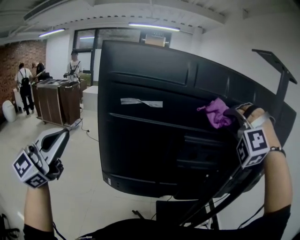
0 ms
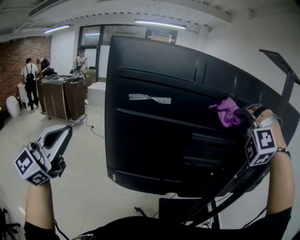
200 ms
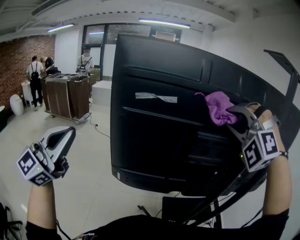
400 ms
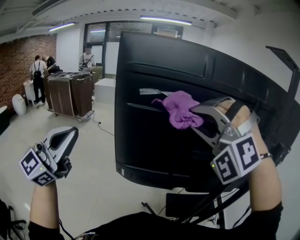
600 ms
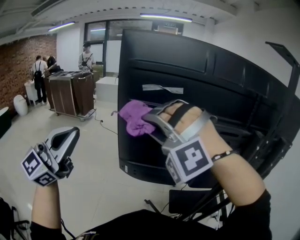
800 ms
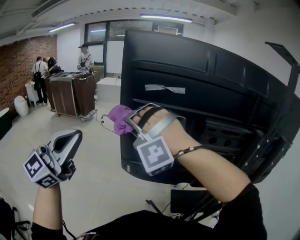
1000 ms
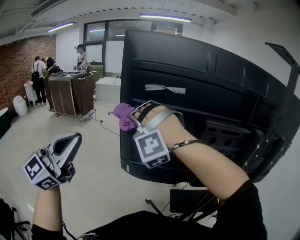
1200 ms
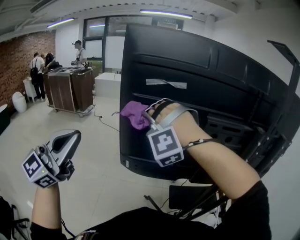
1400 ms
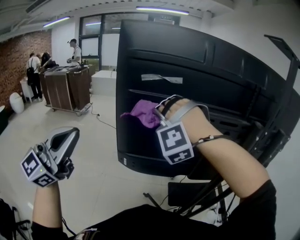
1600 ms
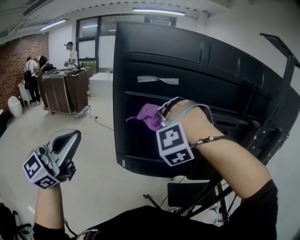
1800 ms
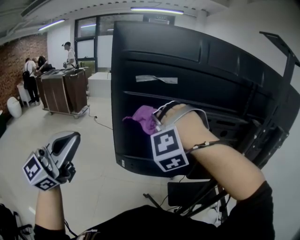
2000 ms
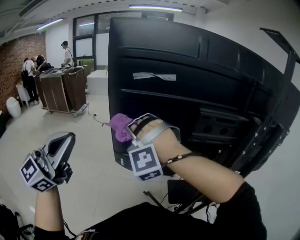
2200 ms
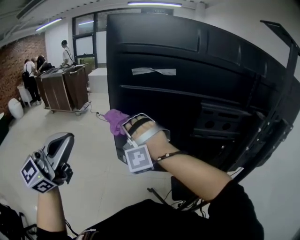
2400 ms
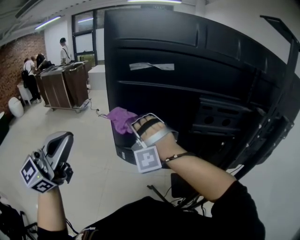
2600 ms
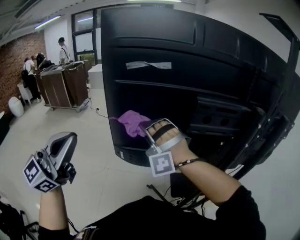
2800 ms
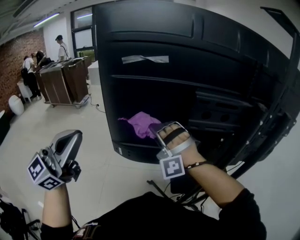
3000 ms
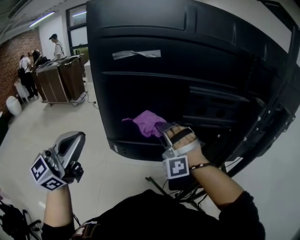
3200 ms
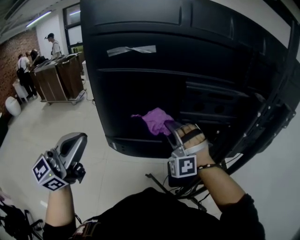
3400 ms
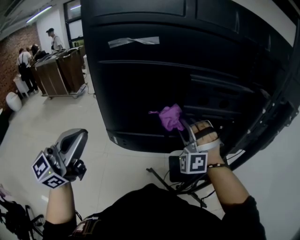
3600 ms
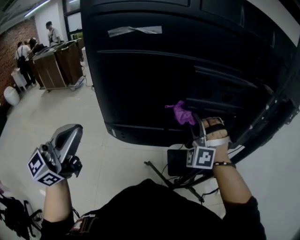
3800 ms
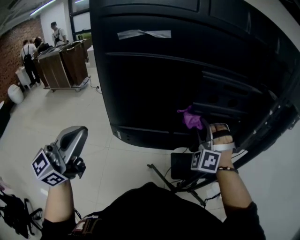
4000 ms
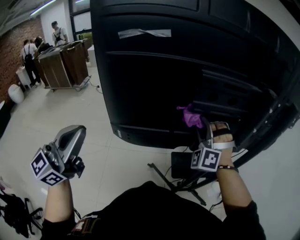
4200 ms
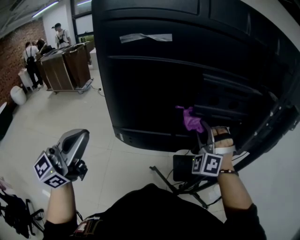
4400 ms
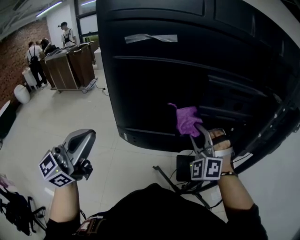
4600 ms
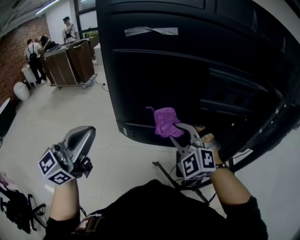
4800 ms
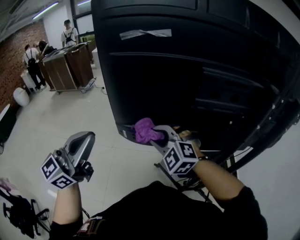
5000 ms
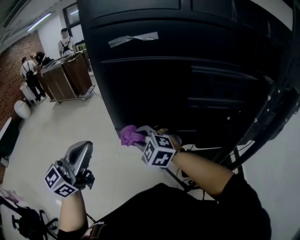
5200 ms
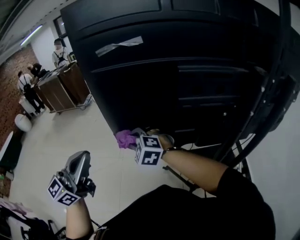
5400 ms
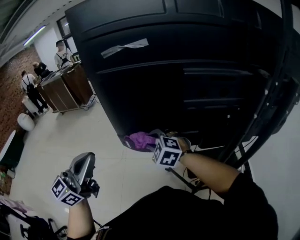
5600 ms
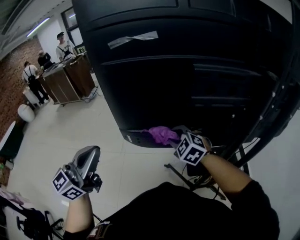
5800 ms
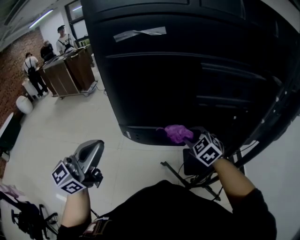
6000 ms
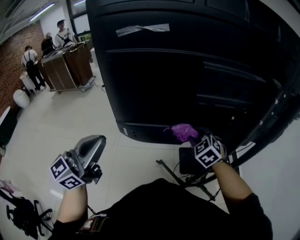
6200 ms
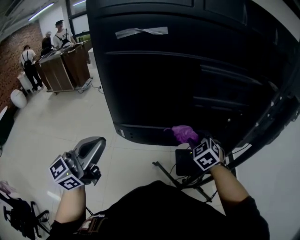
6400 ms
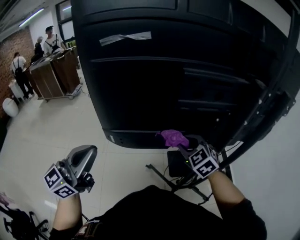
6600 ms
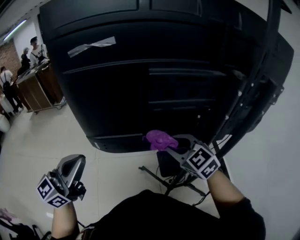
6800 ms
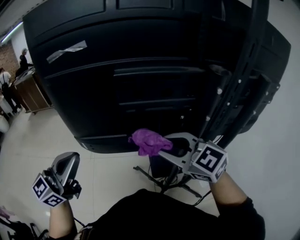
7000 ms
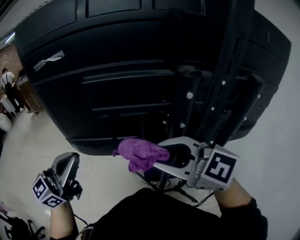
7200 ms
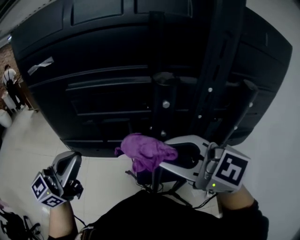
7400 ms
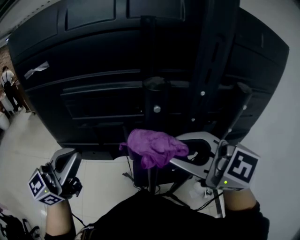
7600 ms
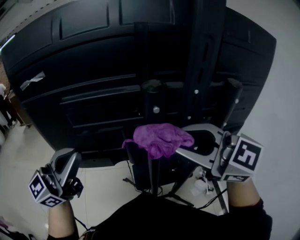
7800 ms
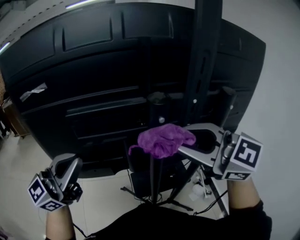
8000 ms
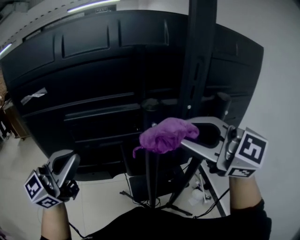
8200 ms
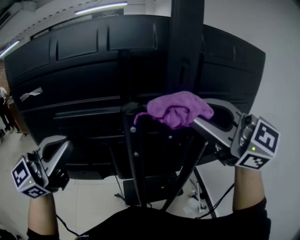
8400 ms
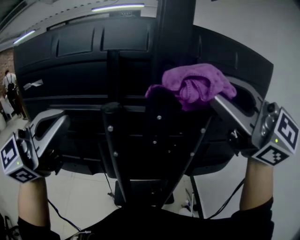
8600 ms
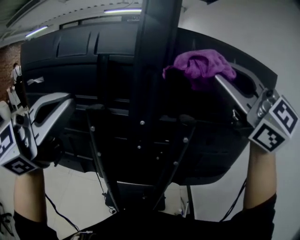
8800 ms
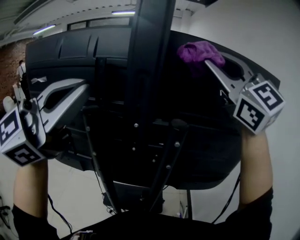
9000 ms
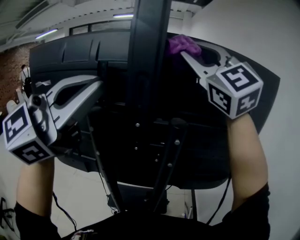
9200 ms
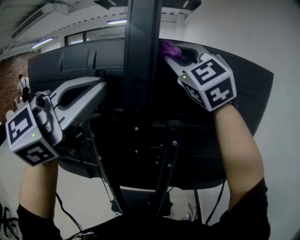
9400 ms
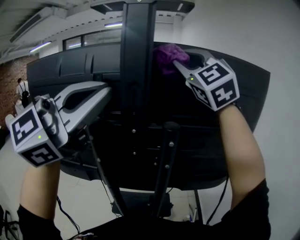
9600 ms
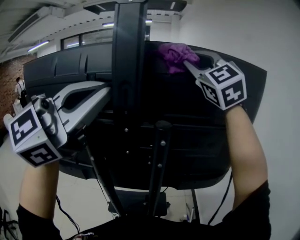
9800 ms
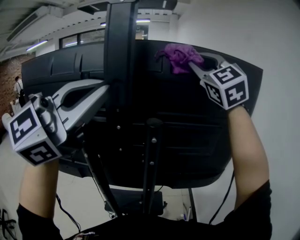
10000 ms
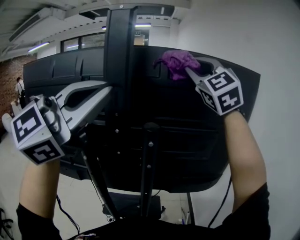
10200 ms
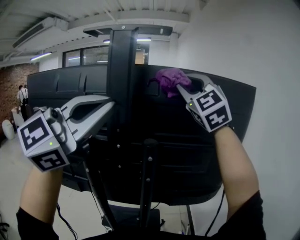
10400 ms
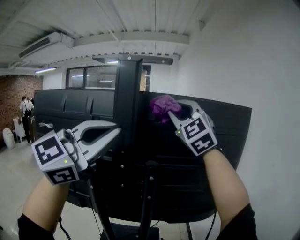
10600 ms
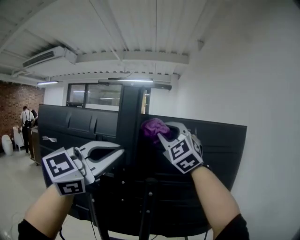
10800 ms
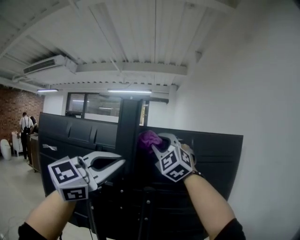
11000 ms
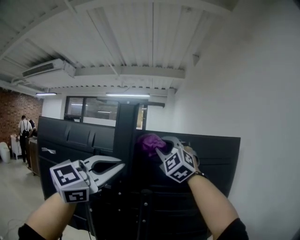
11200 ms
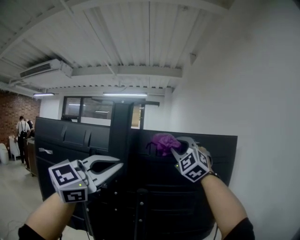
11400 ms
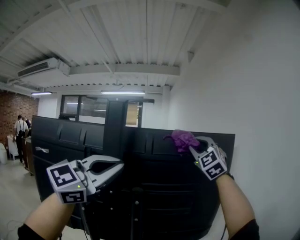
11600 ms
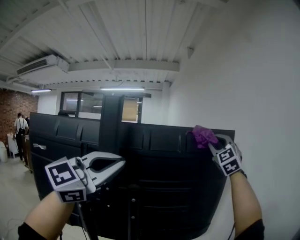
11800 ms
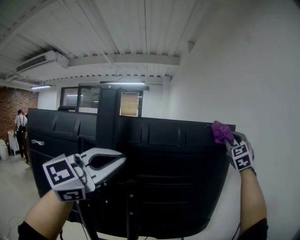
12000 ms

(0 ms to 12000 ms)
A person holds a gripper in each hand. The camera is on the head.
0 ms - 1600 ms: The right gripper is displaced to the left and downward by some 30 cm. Meanwhile the left gripper ends up approximately 5 cm from where it was.
1600 ms - 3000 ms: The left gripper changes place by about 5 cm. The right gripper heads downward, covering roughly 10 cm, goes to the left and returns, about 10 cm each way, and rotates approximately 30 degrees.
3000 ms - 4400 ms: The right gripper goes about 15 cm to the right, and rotates some 30 degrees, while the left gripper shifts by roughly 5 cm.
4400 ms - 6000 ms: The right gripper is displaced downward by about 10 cm, travels to the left and back again, about 25 cm each way, and turns by roughly 60 degrees.
6000 ms - 7600 ms: The right gripper moves approximately 35 cm, and swivels approximately 40 degrees. Meanwhile the left gripper changes place by about 30 cm.
7600 ms - 9000 ms: The right gripper goes roughly 40 cm upward, to the right and forward, and swivels approximately 40 degrees. The left gripper shifts some 30 cm upward and to the right, and swivels roughly 30 degrees.
9000 ms - 10400 ms: The left gripper is displaced to the right by some 10 cm. The right gripper travels forward by some 5 cm, reaches about 10 cm to the left, then returns, and swivels some 20 degrees.
10400 ms - 12000 ms: The left gripper travels to the right by roughly 5 cm, while the right gripper moves to the right and forward, about 35 cm, and rotates about 30 degrees.

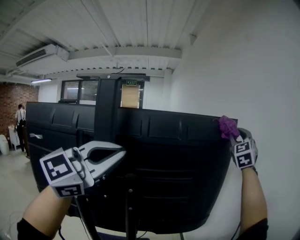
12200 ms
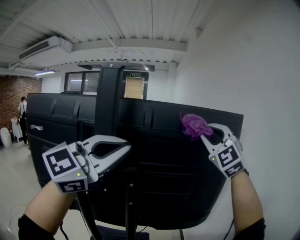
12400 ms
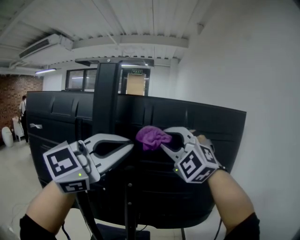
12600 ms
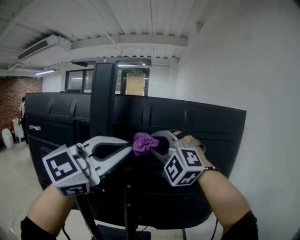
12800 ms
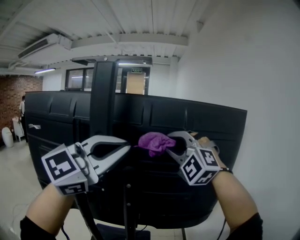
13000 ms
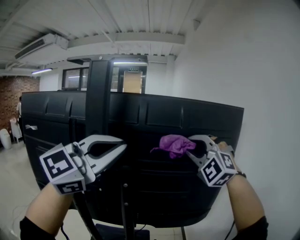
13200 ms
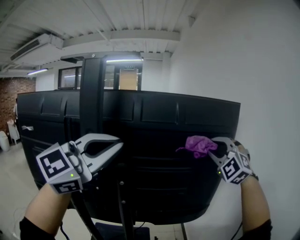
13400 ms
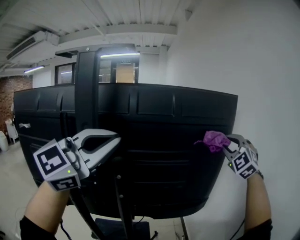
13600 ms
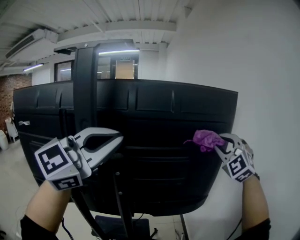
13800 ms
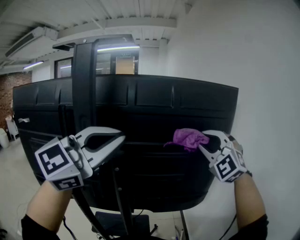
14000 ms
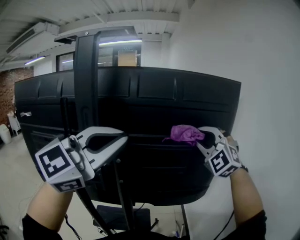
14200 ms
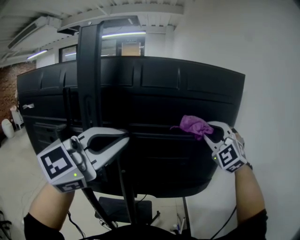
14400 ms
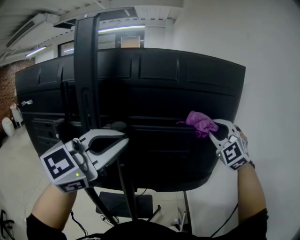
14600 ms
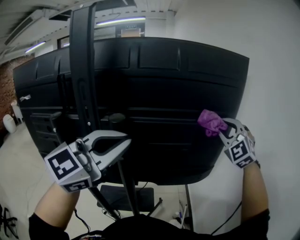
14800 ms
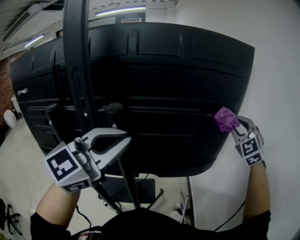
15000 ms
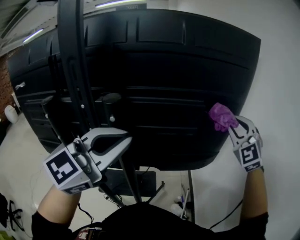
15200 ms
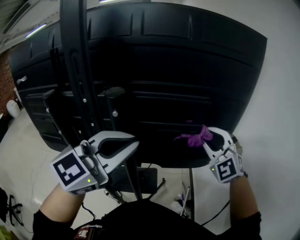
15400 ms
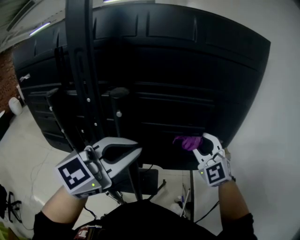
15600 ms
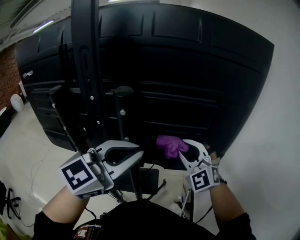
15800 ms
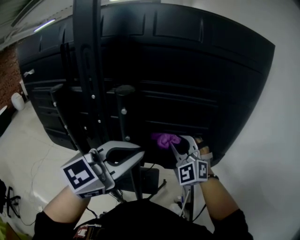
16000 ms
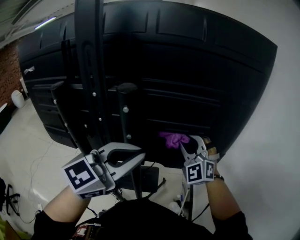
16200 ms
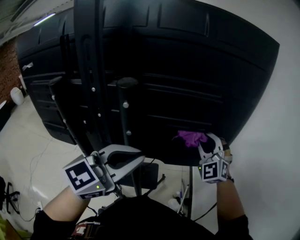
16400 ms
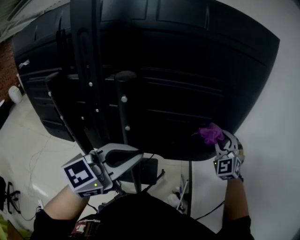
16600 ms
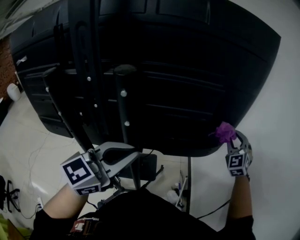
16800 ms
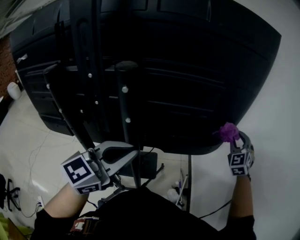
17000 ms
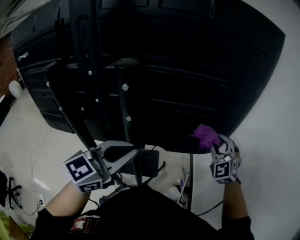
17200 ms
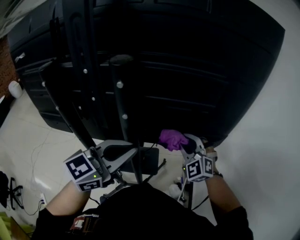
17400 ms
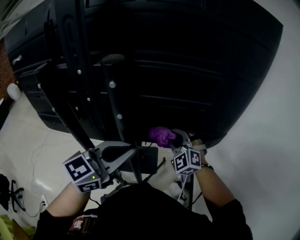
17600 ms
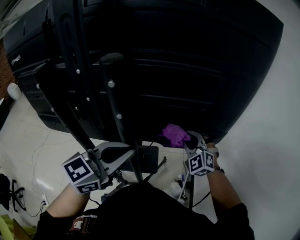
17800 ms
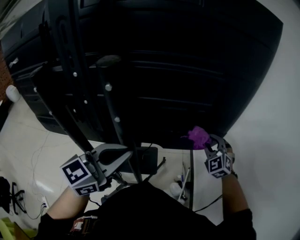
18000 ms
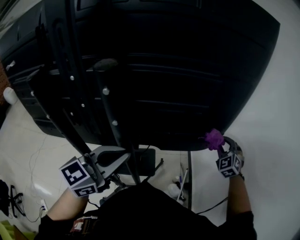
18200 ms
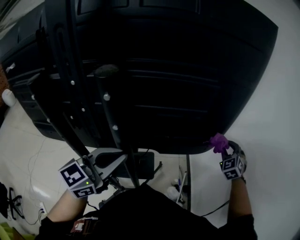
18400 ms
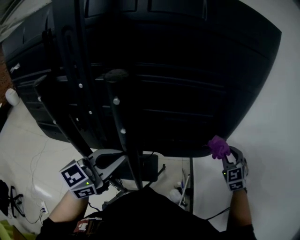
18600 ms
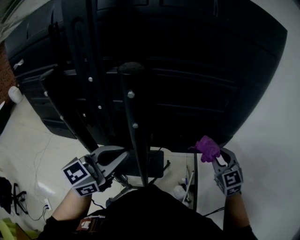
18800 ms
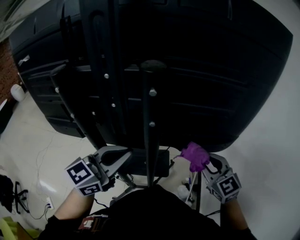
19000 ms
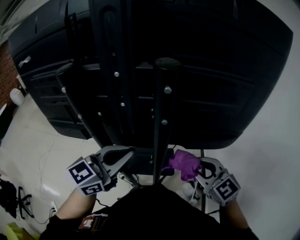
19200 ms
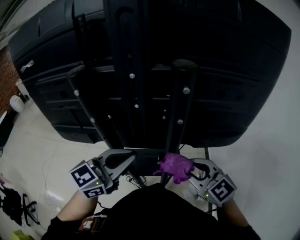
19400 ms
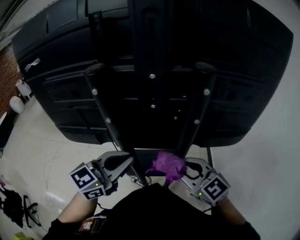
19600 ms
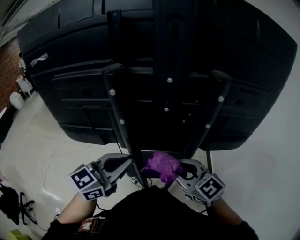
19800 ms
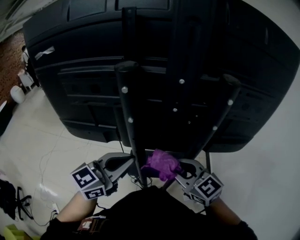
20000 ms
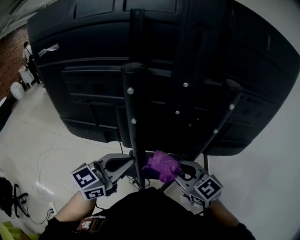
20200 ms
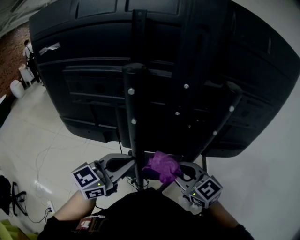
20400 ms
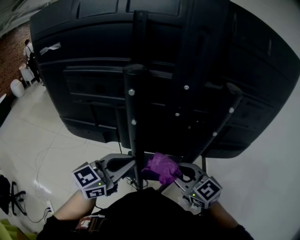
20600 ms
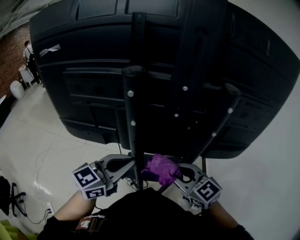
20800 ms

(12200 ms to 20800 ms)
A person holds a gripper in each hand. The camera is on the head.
12200 ms - 13600 ms: The left gripper moves about 5 cm; the right gripper heads downward, covering about 15 cm, moves roughly 35 cm to the left and comes back, and swivels roughly 30 degrees.
13600 ms - 15000 ms: The grippers both shift downward by roughly 10 cm. The right gripper reaches about 10 cm to the left, then returns.
15000 ms - 16600 ms: Both grippers travel together downward, roughly 15 cm. The right gripper travels to the left and back again, approximately 25 cm each way.
16600 ms - 18000 ms: The right gripper goes left and right, approximately 25 cm each way, reversing 2 times. The left gripper is displaced downward by roughly 5 cm.
18000 ms - 19400 ms: The left gripper ends up roughly 10 cm from where it was; the right gripper shifts by some 30 cm, and changes its angle by approximately 40 degrees.
19400 ms - 20800 ms: The grippers both shift to the left by roughly 10 cm.

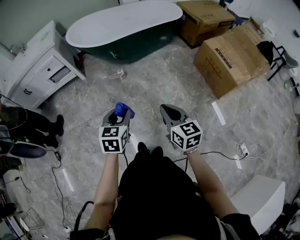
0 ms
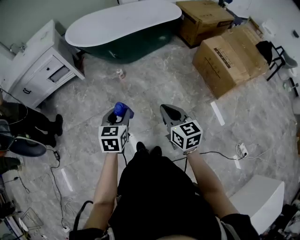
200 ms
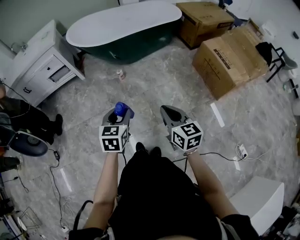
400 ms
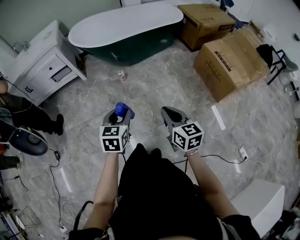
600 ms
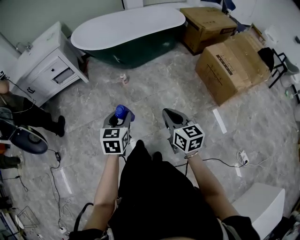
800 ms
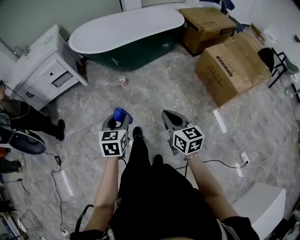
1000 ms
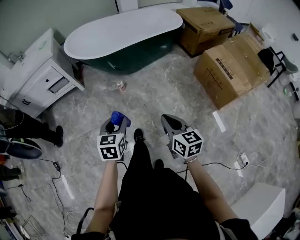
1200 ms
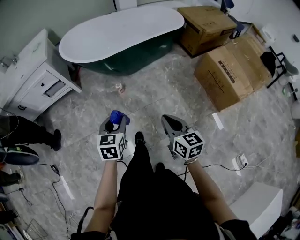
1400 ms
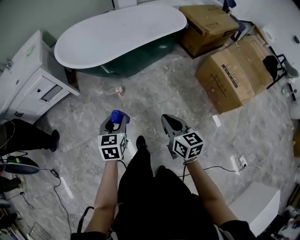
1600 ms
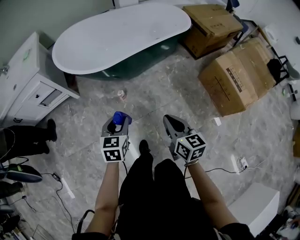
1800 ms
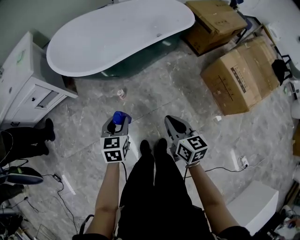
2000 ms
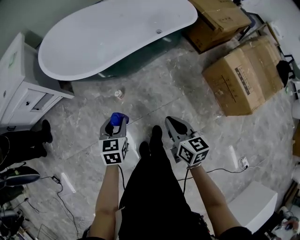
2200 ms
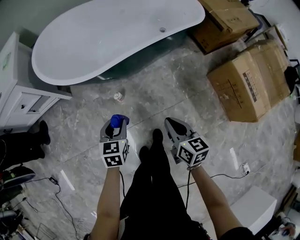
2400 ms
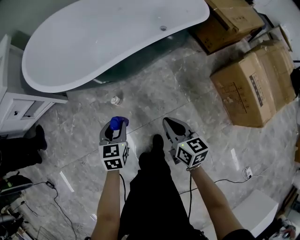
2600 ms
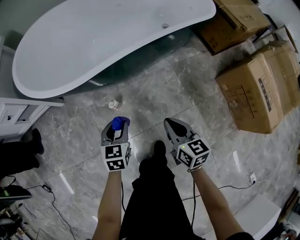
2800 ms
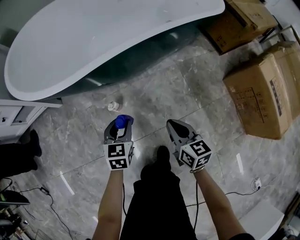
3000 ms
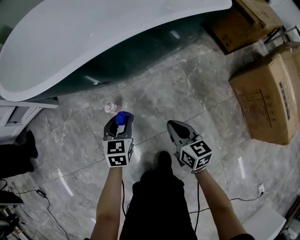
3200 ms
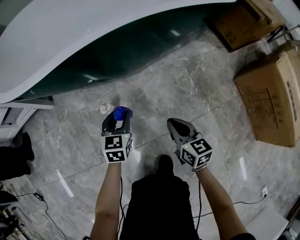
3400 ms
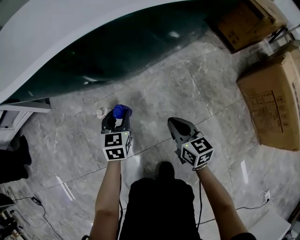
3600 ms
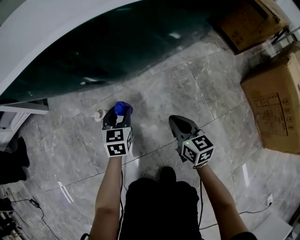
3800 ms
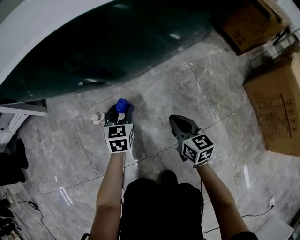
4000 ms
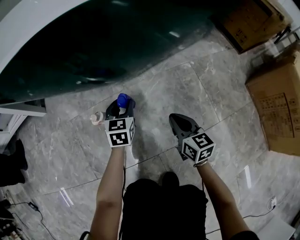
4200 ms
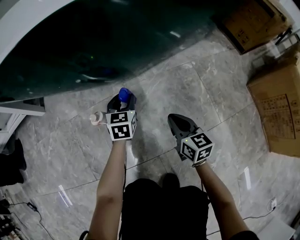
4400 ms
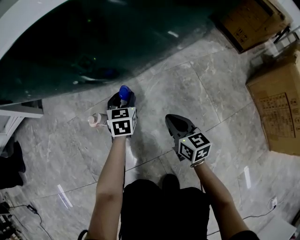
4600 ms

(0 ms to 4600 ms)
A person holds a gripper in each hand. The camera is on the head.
0 ms - 1600 ms: The two grippers go some 20 cm forward.
1600 ms - 3000 ms: Both grippers move downward and forward, about 50 cm.
3000 ms - 4600 ms: The left gripper goes approximately 35 cm downward and forward. The right gripper travels downward by about 30 cm.
